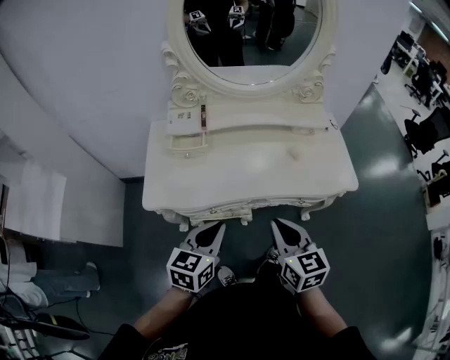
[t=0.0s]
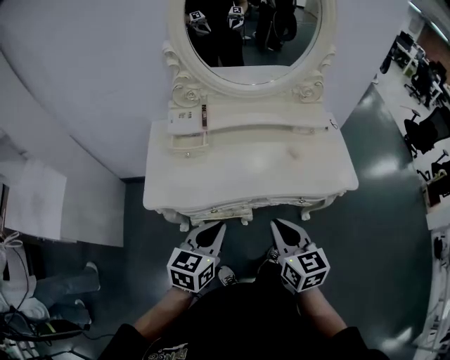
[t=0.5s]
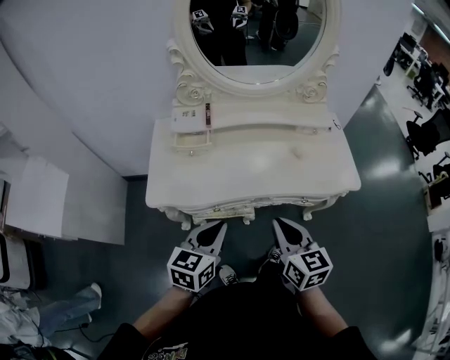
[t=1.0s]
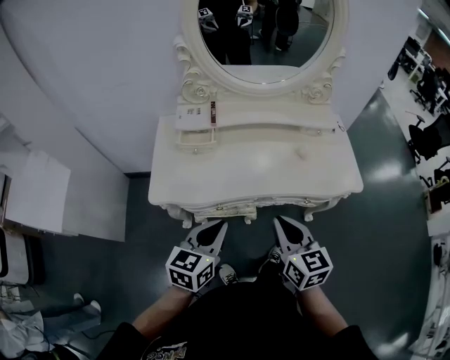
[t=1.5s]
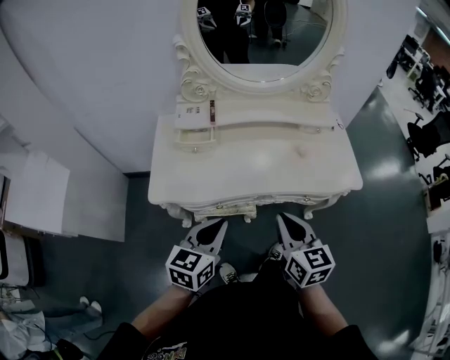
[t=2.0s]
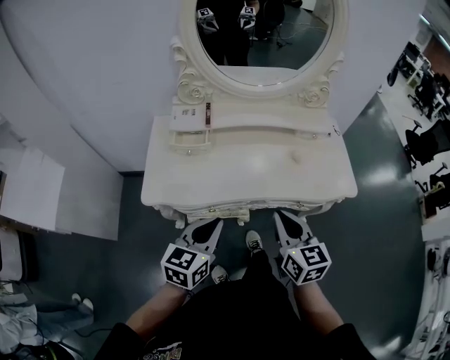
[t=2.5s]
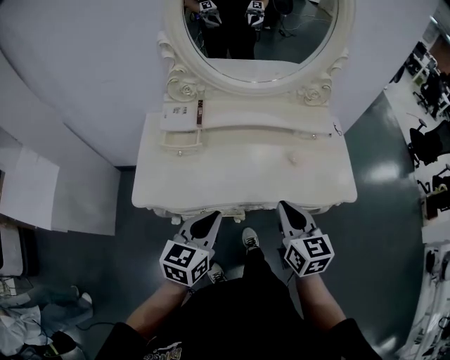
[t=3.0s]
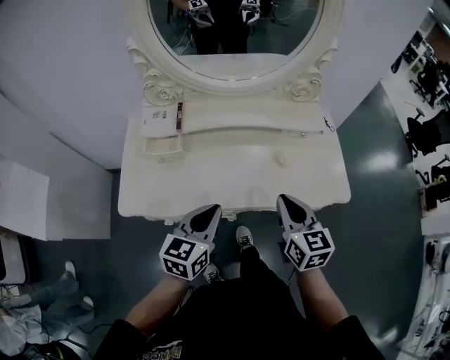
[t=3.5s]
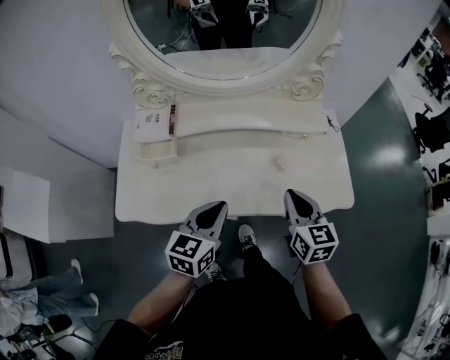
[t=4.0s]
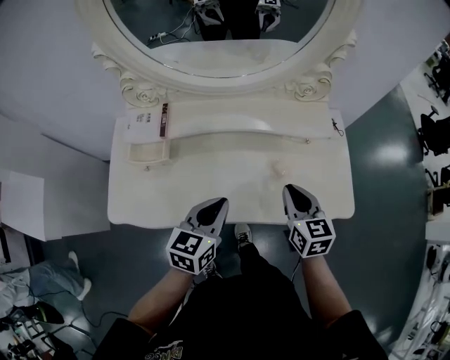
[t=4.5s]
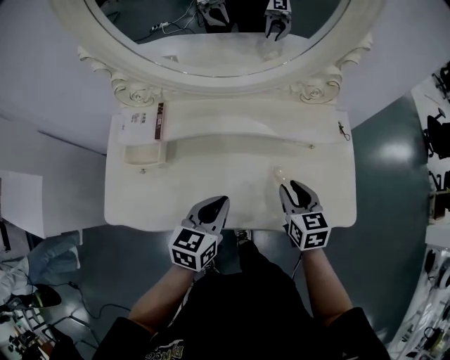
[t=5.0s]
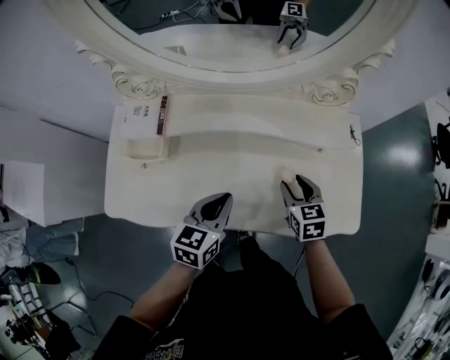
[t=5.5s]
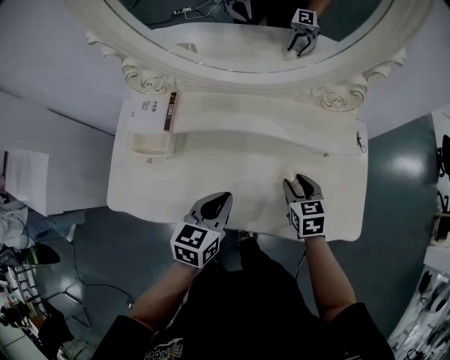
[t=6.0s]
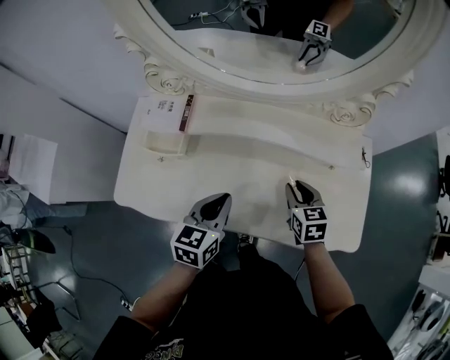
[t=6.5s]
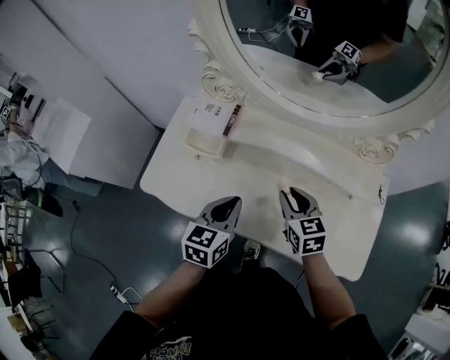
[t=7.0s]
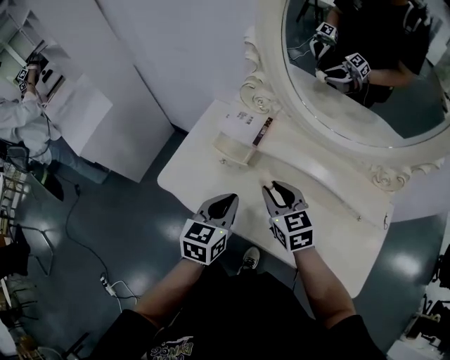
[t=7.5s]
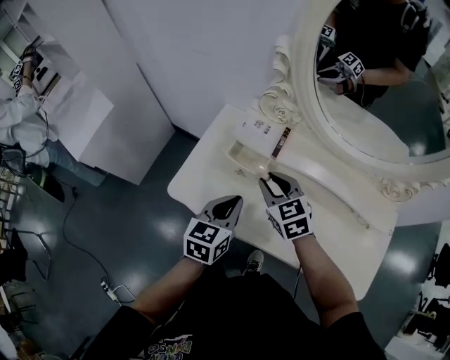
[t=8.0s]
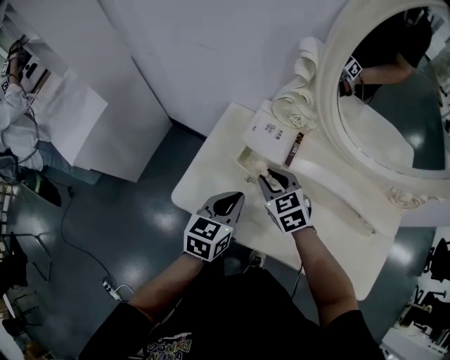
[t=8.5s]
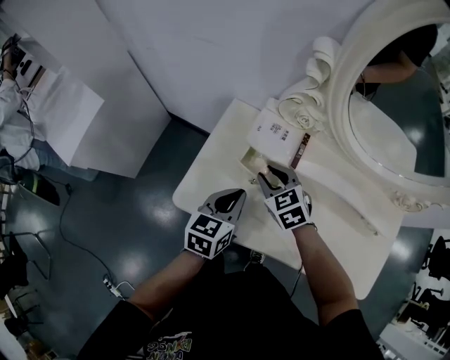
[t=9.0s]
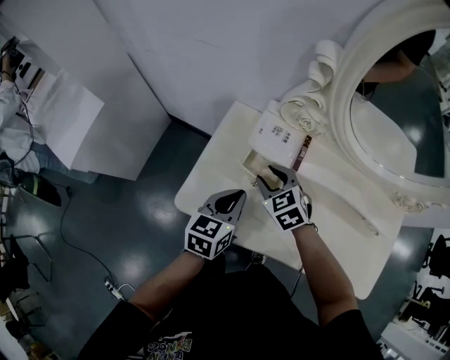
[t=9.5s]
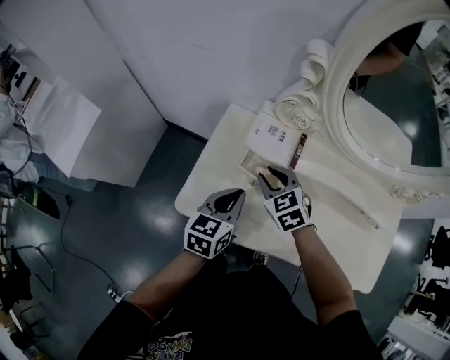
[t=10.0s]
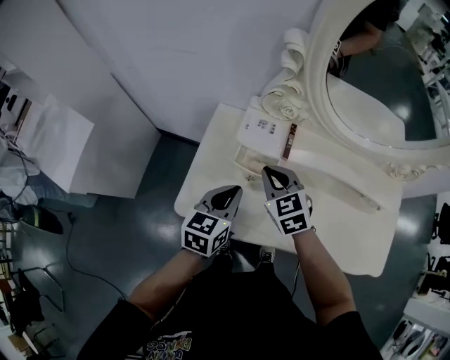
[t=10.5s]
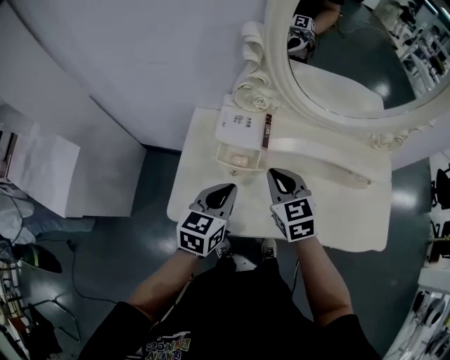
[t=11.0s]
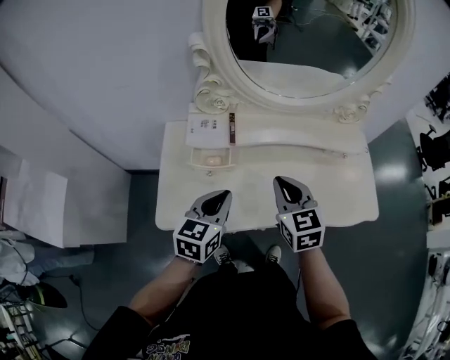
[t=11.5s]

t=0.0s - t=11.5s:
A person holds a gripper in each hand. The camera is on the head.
t=0.0s - t=2.0s: There are only small adjustments of the grippers.
t=2.0s - t=4.0s: Both grippers move forward and to the right, roughly 25 cm.
t=4.0s - t=6.0s: The right gripper goes roughly 20 cm downward and forward, swivels approximately 20 degrees, and opens up, while the left gripper shifts roughly 10 cm forward and downward.
t=6.0s - t=7.5s: The left gripper changes place by about 20 cm, and turns by some 30 degrees, while the right gripper ends up some 30 cm from where it was, and changes its angle by some 40 degrees.
t=7.5s - t=9.5s: The right gripper heads to the left, forward and downward, covering approximately 20 cm, and rotates some 20 degrees. Meanwhile the left gripper moves to the left and forward, approximately 15 cm.
t=9.5s - t=11.5s: The right gripper ends up approximately 25 cm from where it was, rotates some 50 degrees, and closes its fingers, while the left gripper ends up roughly 10 cm from where it was, and turns by approximately 20 degrees.

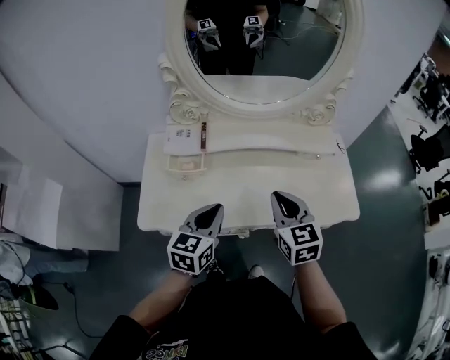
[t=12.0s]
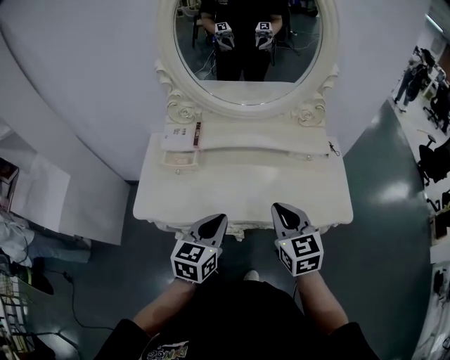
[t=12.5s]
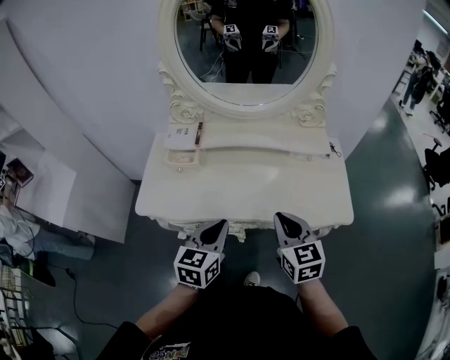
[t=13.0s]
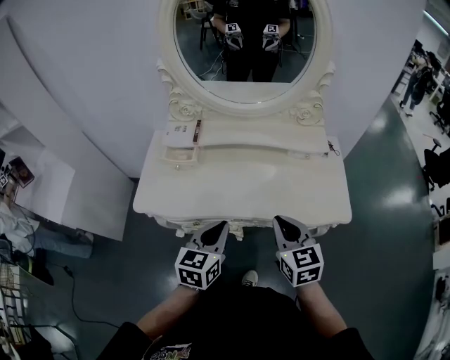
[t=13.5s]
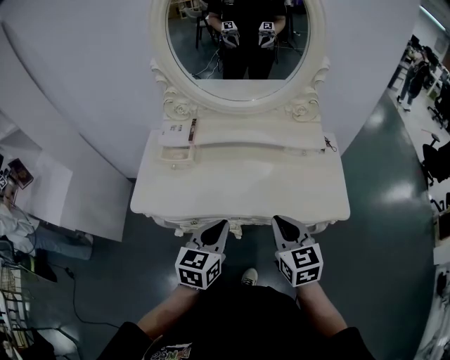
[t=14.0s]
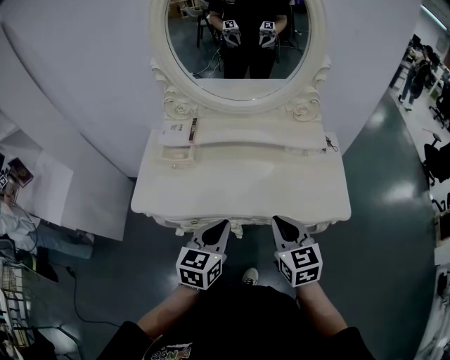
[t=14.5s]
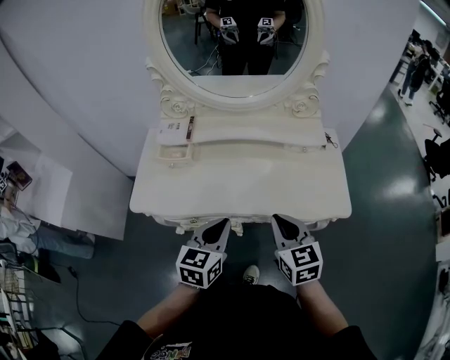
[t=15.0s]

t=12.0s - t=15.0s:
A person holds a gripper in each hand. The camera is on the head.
t=12.0s - t=13.5s: The right gripper shifts approximately 15 cm backward and to the right. Meanwhile the left gripper moves to the right and backward, approximately 15 cm.
t=13.5s - t=15.0s: There are only small adjustments of the grippers.

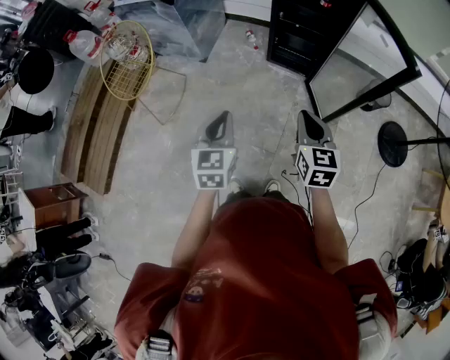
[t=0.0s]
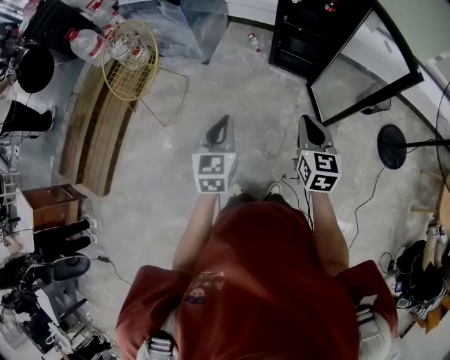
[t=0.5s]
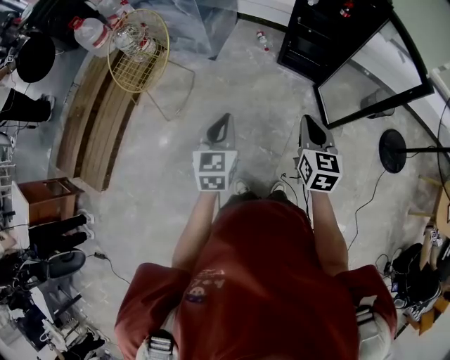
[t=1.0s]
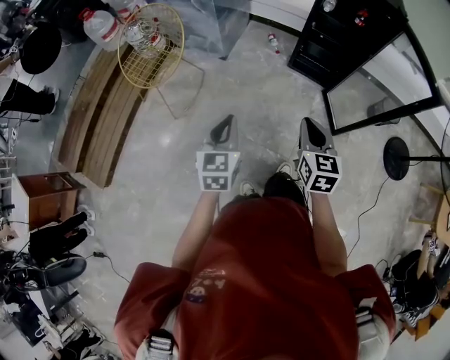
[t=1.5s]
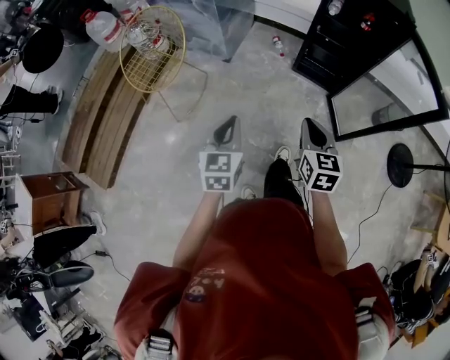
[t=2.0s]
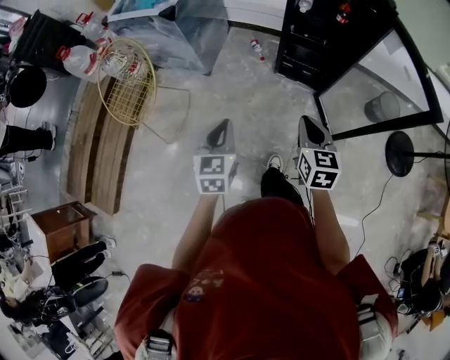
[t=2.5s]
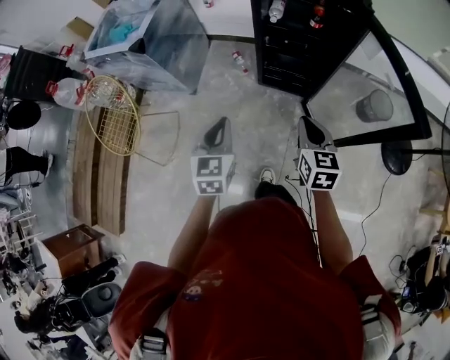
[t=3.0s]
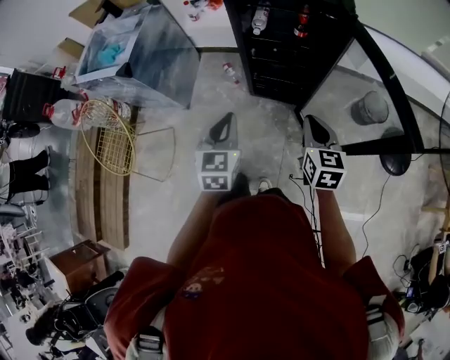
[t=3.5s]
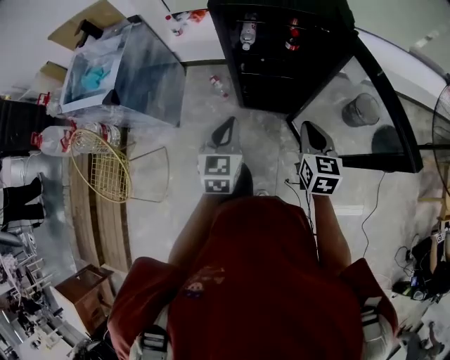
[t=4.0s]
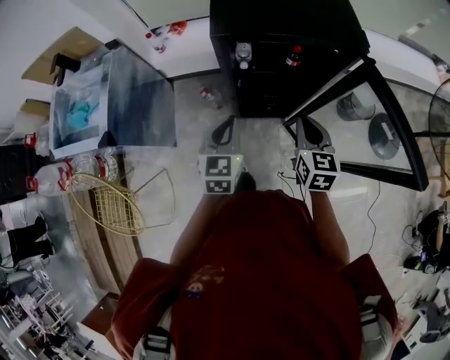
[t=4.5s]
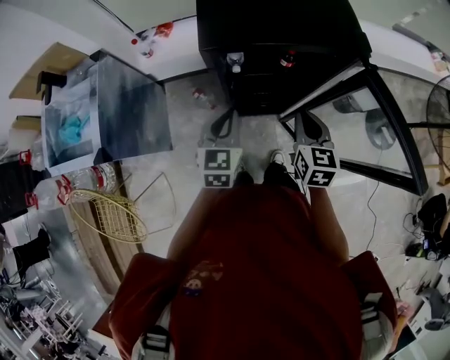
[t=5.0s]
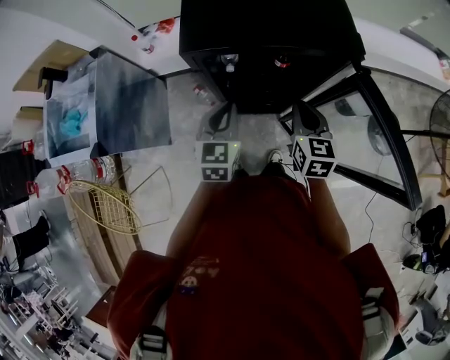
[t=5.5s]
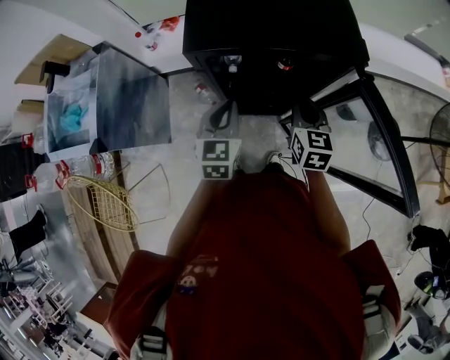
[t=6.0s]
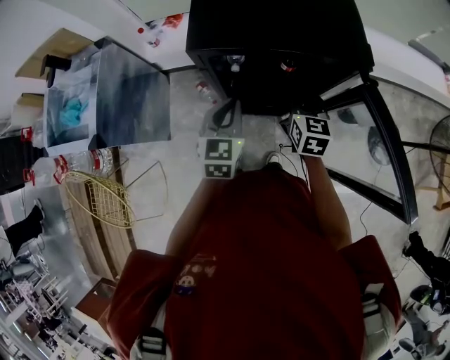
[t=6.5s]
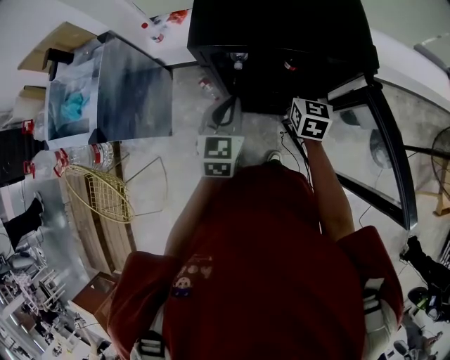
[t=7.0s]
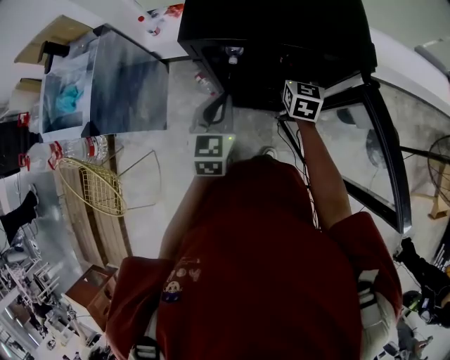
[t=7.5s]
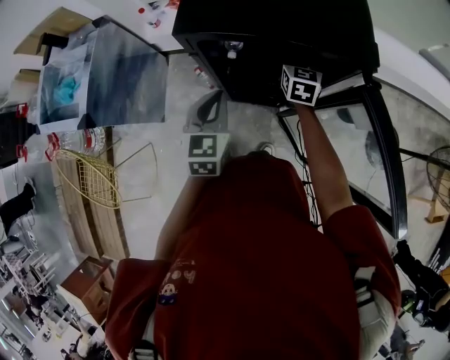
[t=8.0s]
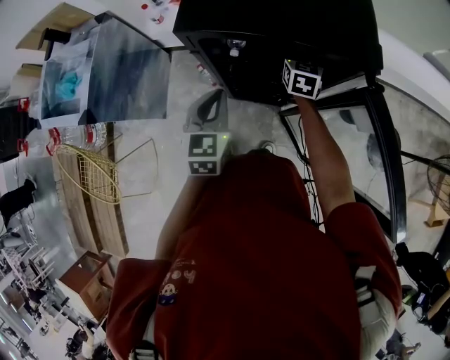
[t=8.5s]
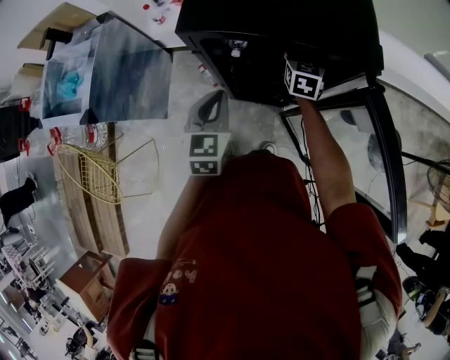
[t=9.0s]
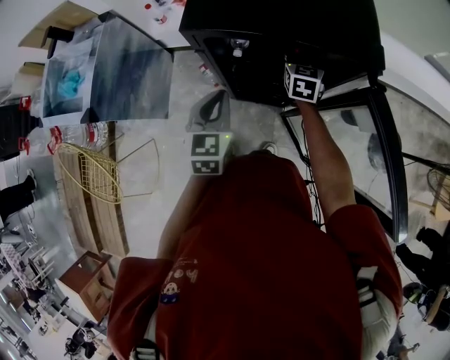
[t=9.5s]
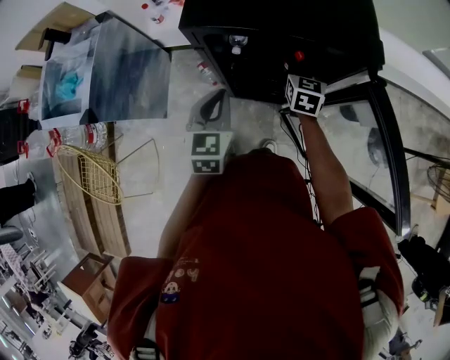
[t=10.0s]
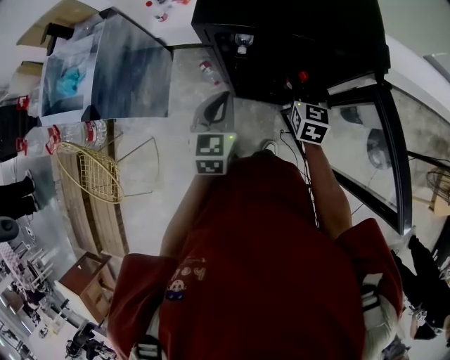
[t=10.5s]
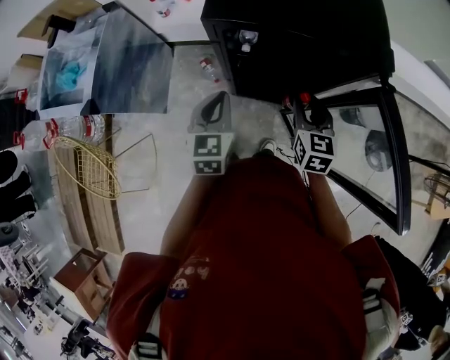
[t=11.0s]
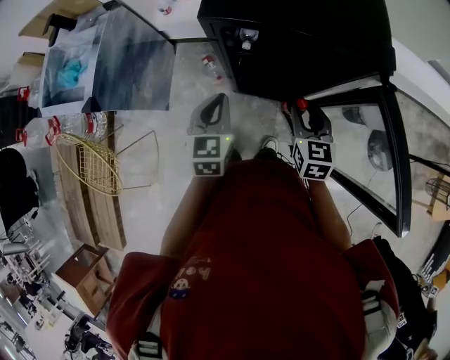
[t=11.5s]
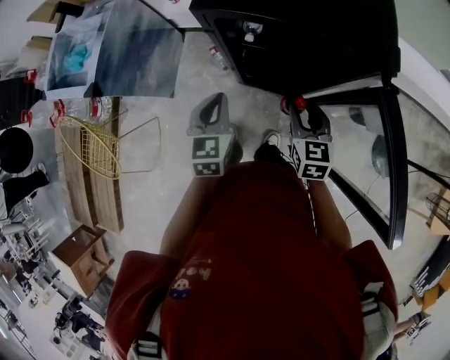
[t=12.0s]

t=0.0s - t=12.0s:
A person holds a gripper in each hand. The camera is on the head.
t=0.0s - t=2.0s: Both grippers travel together to the left, roughly 15 cm.
t=2.0s - t=4.0s: The pair of grippers is taken forward and to the right, roughly 50 cm. The right gripper rotates some 20 degrees; the left gripper swivels approximately 20 degrees.
t=4.0s - t=6.0s: Both grippers travel together forward, approximately 25 cm.
t=6.0s - t=8.0s: The right gripper travels forward and downward by about 15 cm, and opens.
t=8.0s - t=10.0s: The right gripper closes.
t=10.0s - t=12.0s: The right gripper is displaced backward by some 15 cm; the left gripper ends up about 5 cm from where it was.
